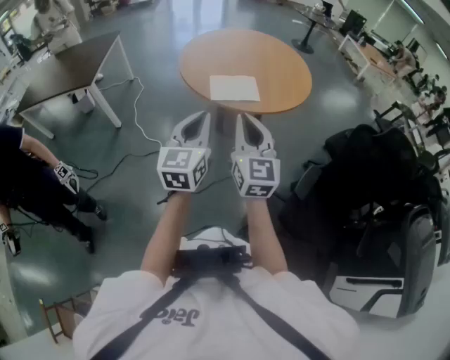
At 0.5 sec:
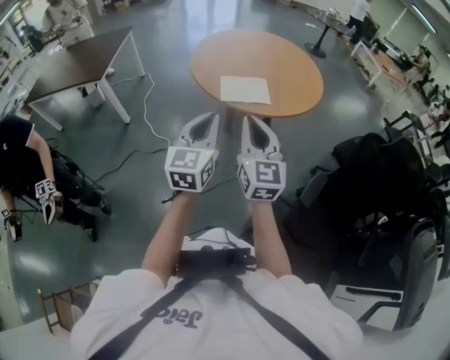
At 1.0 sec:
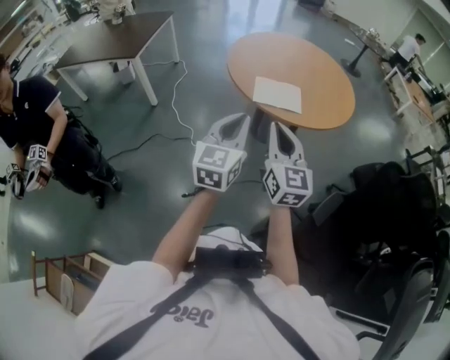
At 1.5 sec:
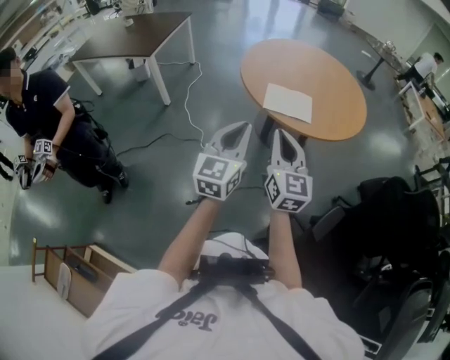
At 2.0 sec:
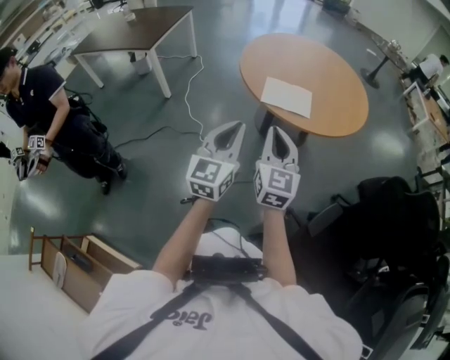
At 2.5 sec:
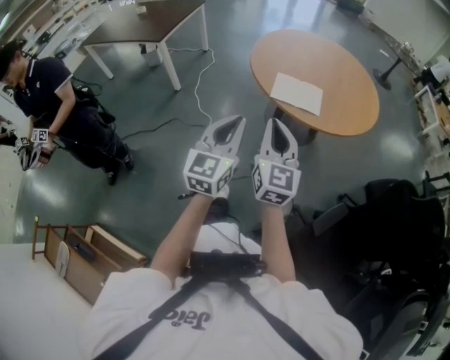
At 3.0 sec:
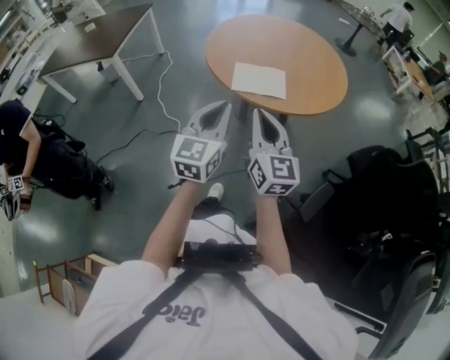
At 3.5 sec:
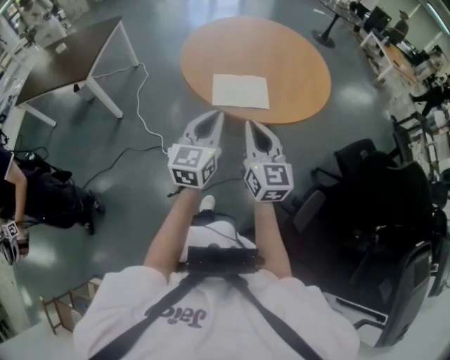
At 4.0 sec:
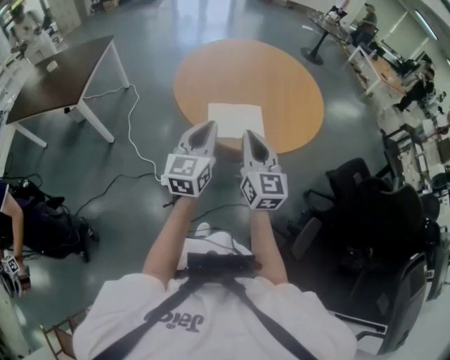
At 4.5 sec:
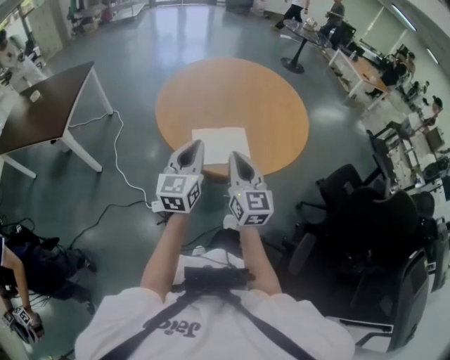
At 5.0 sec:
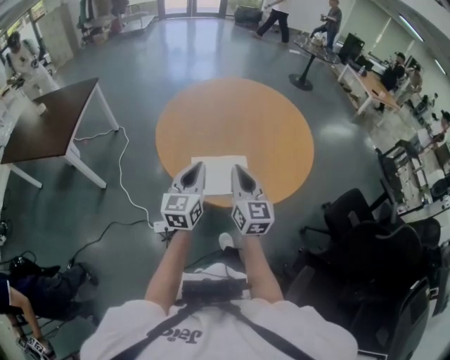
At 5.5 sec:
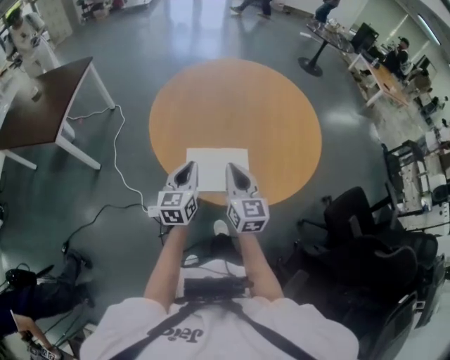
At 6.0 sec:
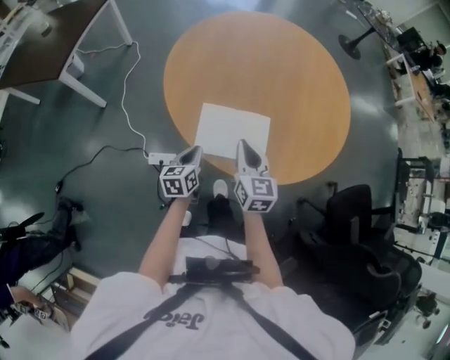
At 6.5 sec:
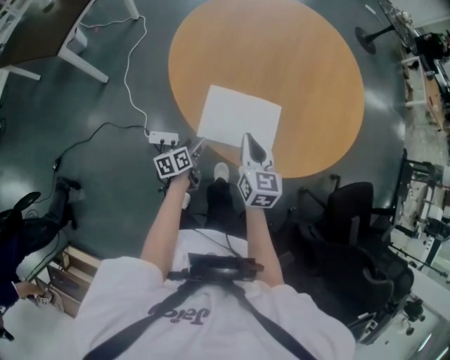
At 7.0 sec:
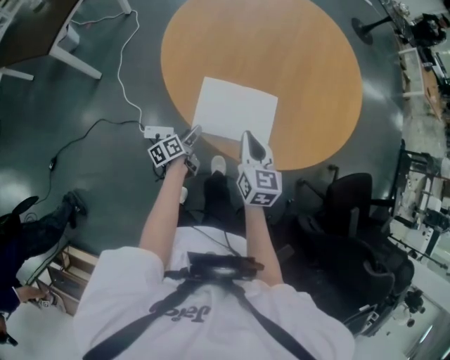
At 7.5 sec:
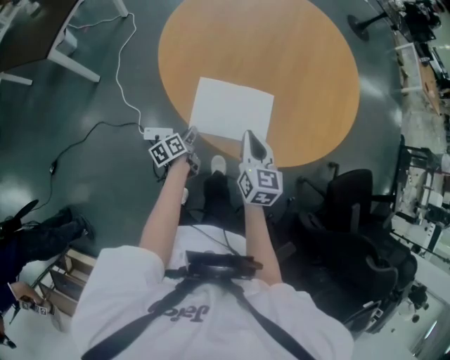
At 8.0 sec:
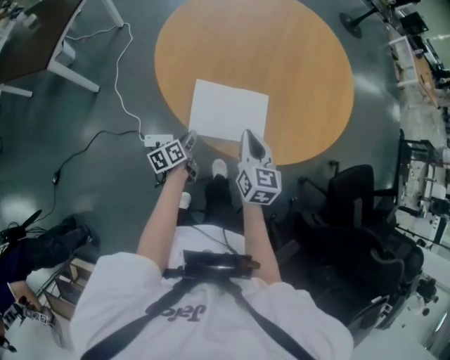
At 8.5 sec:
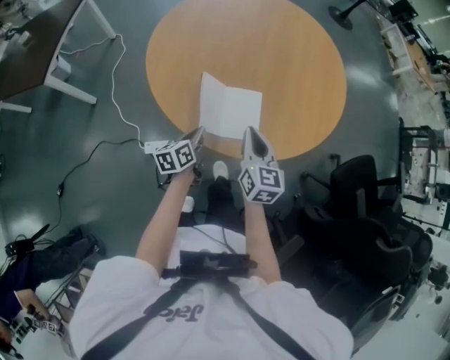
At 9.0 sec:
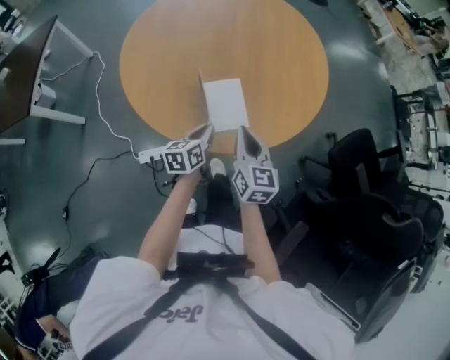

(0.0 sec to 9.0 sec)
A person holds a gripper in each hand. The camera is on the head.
0.0 sec - 2.0 sec: The right gripper is displaced downward by about 5 cm.
2.0 sec - 4.5 sec: The grippers both shift forward by roughly 25 cm.
4.5 sec - 7.0 sec: The right gripper is displaced downward and forward by roughly 25 cm, and swivels roughly 30 degrees; the left gripper is displaced downward by approximately 40 cm, rolls counterclockwise, seen from behind, by some 60 degrees, and opens its fingers.
7.0 sec - 9.0 sec: The left gripper shifts roughly 20 cm upward and to the right, turns by approximately 40 degrees, and closes its fingers. Meanwhile the right gripper moves to the right, some 5 cm.

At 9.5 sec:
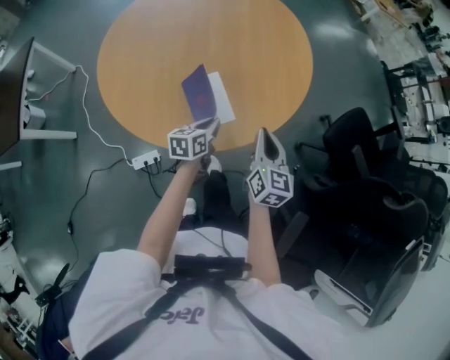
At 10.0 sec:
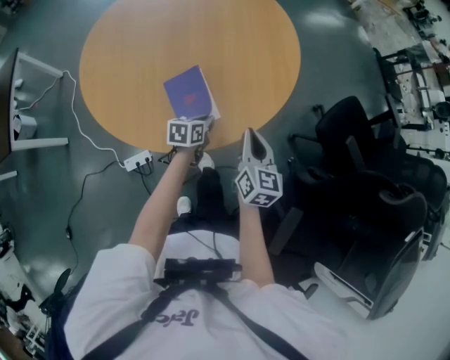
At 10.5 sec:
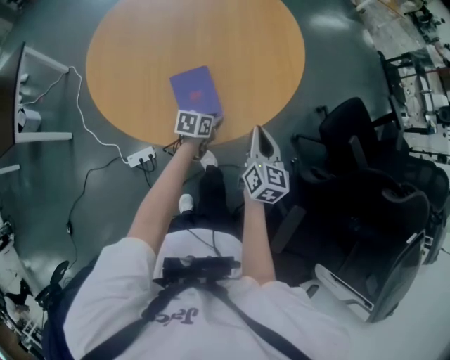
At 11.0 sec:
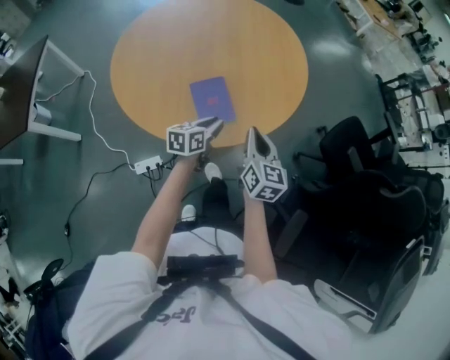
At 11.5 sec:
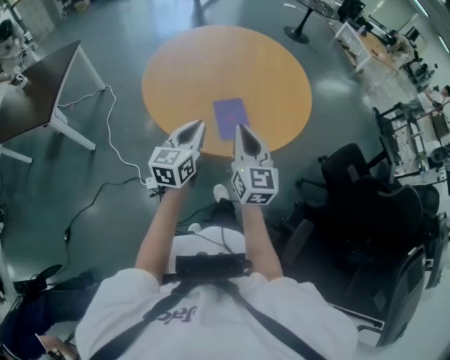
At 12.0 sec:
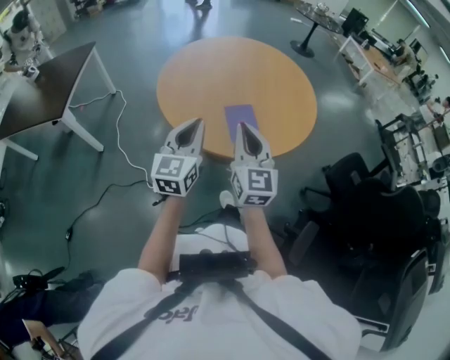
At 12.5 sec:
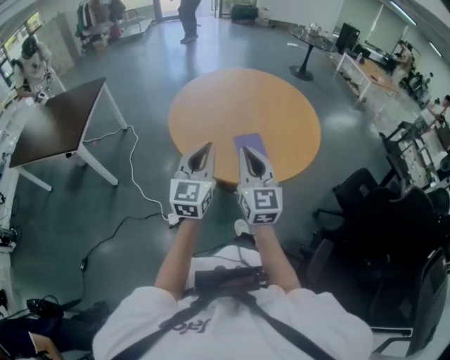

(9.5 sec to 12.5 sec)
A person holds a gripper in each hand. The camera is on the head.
9.5 sec - 11.0 sec: The right gripper ends up about 5 cm from where it was.
11.0 sec - 12.5 sec: The right gripper goes roughly 25 cm to the left, upward and backward, and rotates roughly 30 degrees, while the left gripper heads upward, to the left and backward, covering some 35 cm, and swivels roughly 60 degrees.

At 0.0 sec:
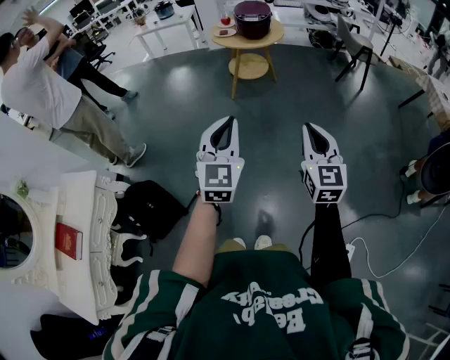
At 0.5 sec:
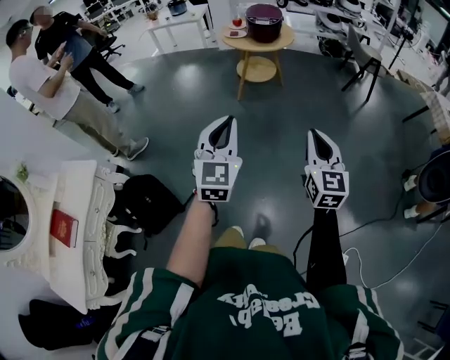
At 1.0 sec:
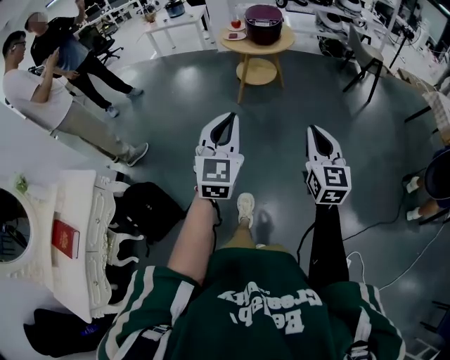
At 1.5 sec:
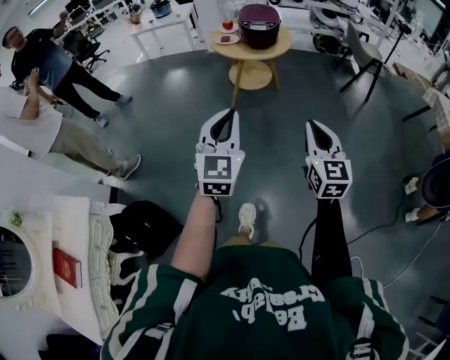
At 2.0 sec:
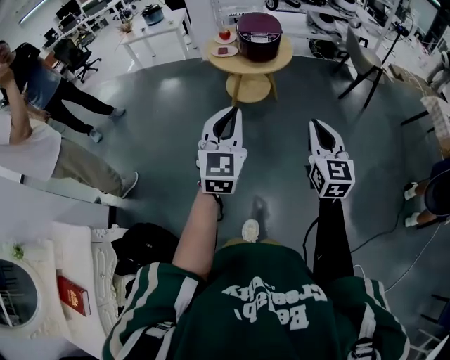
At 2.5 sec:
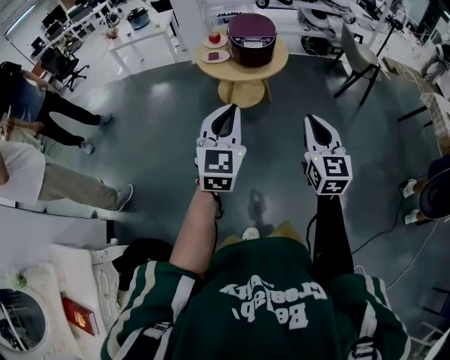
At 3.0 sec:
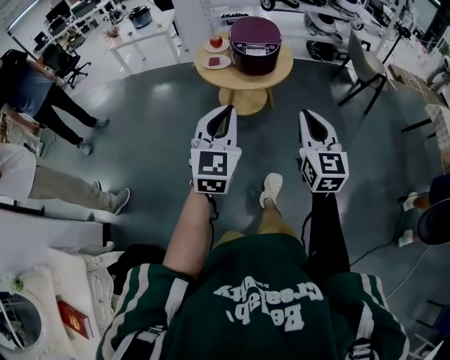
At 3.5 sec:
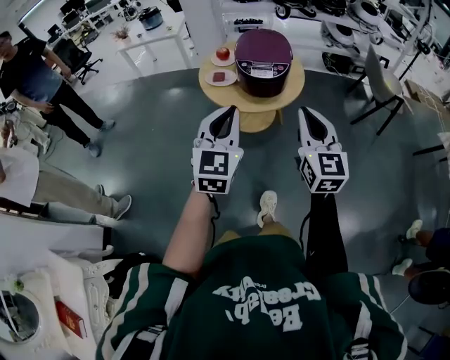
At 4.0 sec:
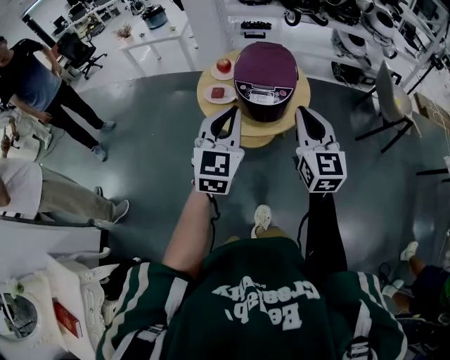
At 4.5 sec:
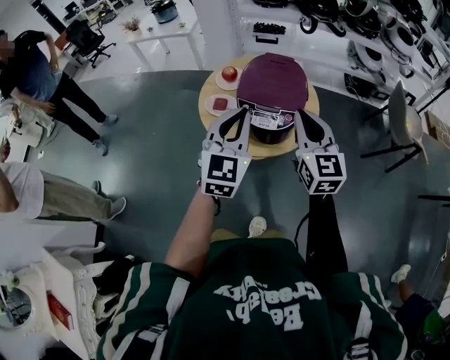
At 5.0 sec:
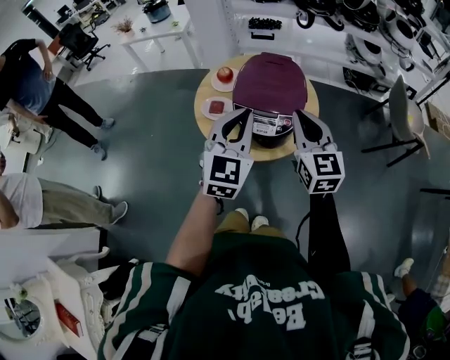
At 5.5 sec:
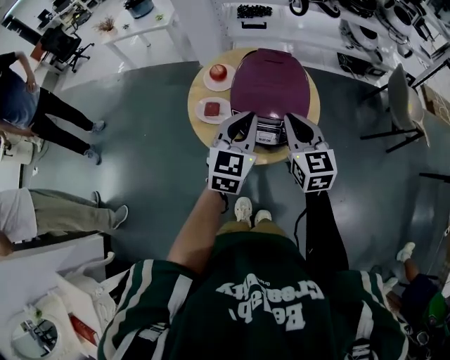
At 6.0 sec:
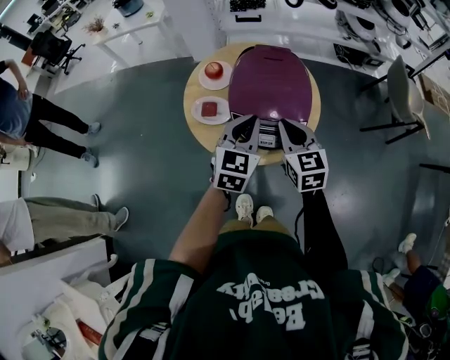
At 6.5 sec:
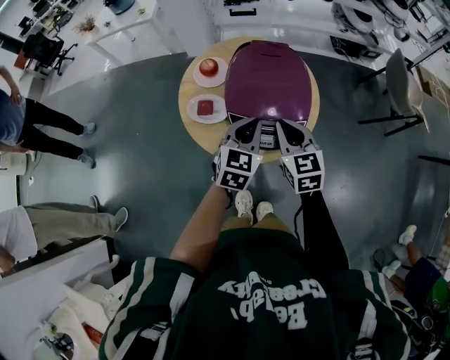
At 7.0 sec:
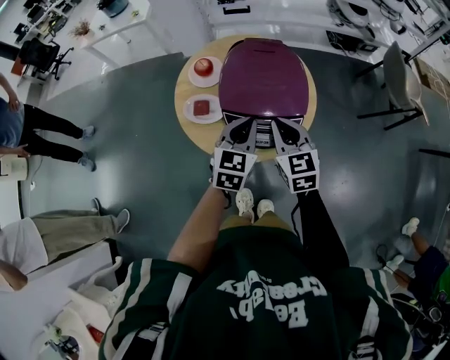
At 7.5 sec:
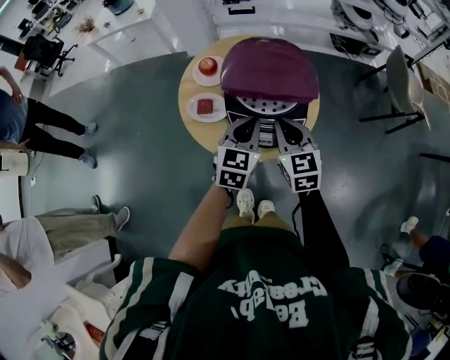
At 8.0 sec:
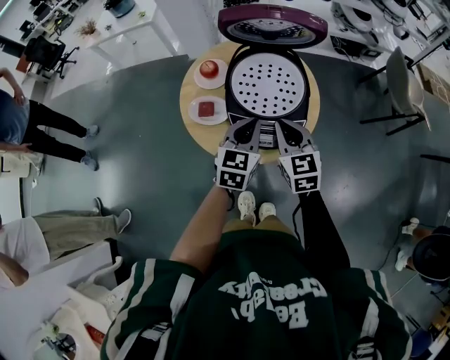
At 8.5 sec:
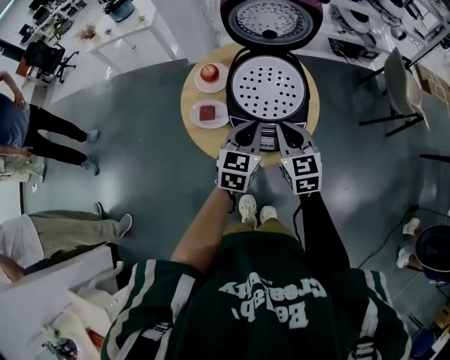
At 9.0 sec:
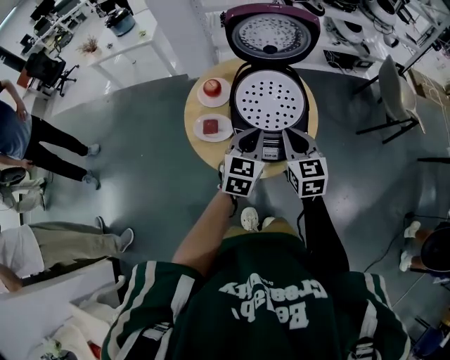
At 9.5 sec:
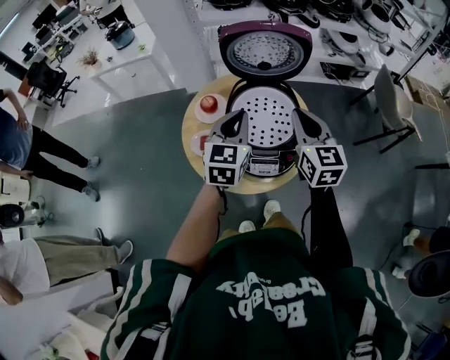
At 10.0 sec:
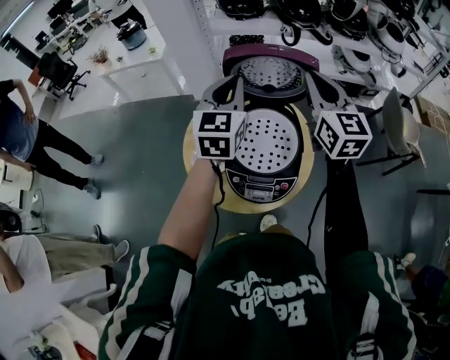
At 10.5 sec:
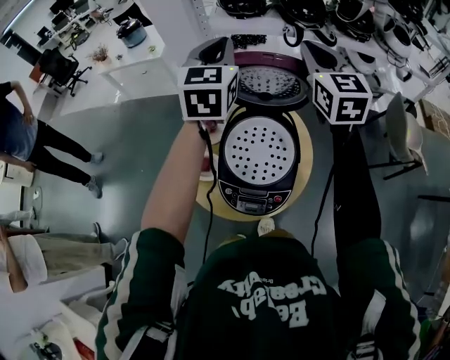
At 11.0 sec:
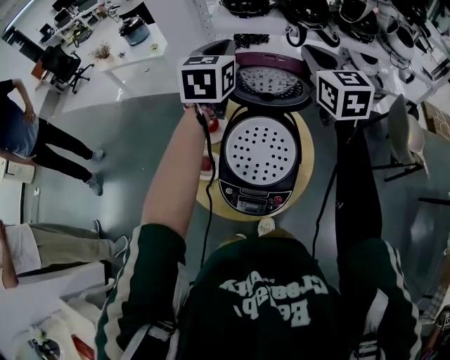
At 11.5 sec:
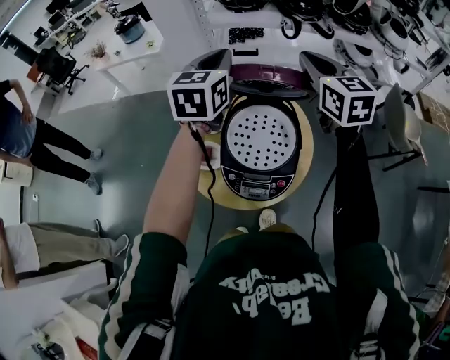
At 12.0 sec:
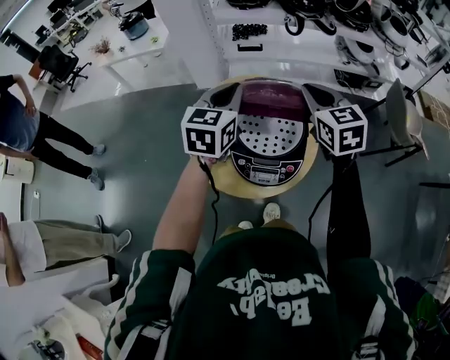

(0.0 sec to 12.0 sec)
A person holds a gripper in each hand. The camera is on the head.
0.0 sec - 2.0 sec: Both grippers travel together forward, some 35 cm.
2.0 sec - 4.0 sec: The pair of grippers is taken forward, about 50 cm.
4.0 sec - 6.0 sec: Both grippers move forward and downward, roughly 25 cm. The right gripper turns by some 20 degrees.
6.0 sec - 8.0 sec: There are only small adjustments of the grippers.
8.0 sec - 10.0 sec: The grippers both shift upward and forward by roughly 30 cm. The left gripper changes its angle by some 20 degrees; the right gripper rotates some 20 degrees.
10.0 sec - 12.0 sec: The left gripper goes forward and returns, roughly 10 cm each way, while the right gripper travels downward by roughly 5 cm, travels forward and back again, roughly 10 cm each way, and turns by approximately 20 degrees.

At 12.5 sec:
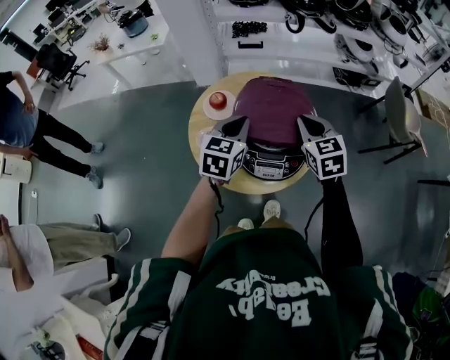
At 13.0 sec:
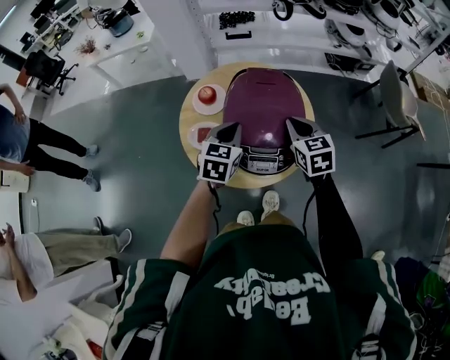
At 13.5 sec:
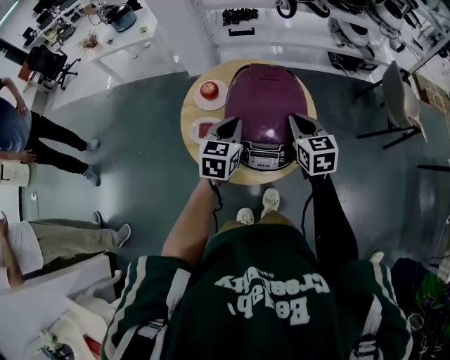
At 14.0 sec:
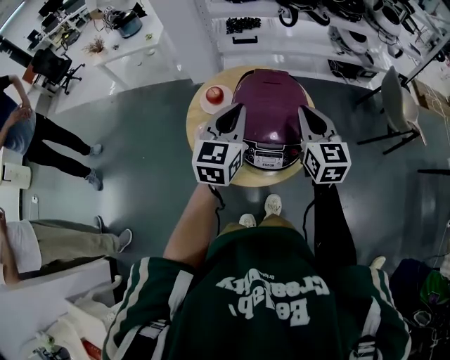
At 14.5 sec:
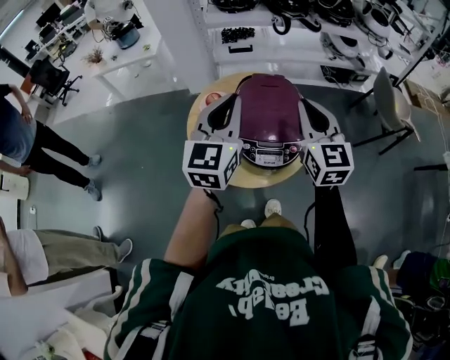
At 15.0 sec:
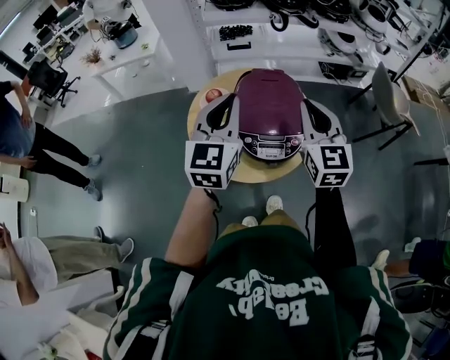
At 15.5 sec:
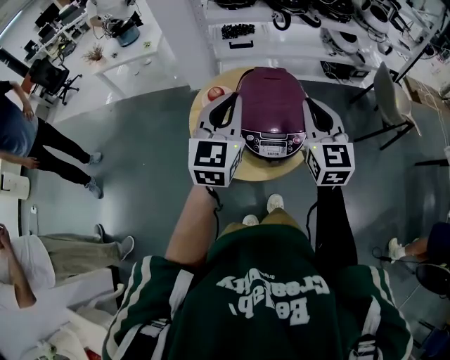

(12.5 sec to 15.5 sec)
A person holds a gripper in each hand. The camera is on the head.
12.5 sec - 14.0 sec: The left gripper goes approximately 5 cm upward. Meanwhile the right gripper changes place by about 5 cm, and swivels roughly 20 degrees.
14.0 sec - 15.5 sec: The left gripper moves upward, approximately 5 cm; the right gripper heads upward and backward, covering approximately 10 cm.
